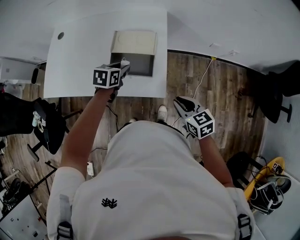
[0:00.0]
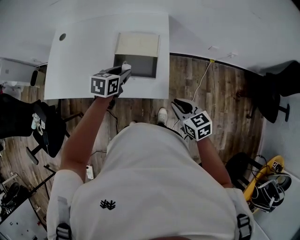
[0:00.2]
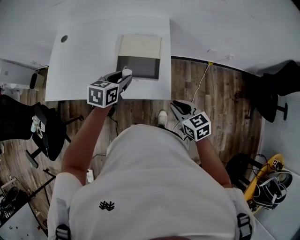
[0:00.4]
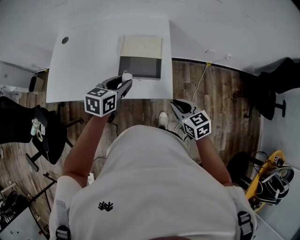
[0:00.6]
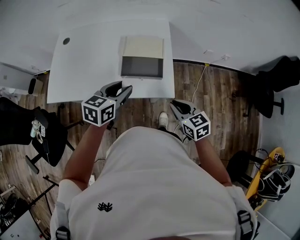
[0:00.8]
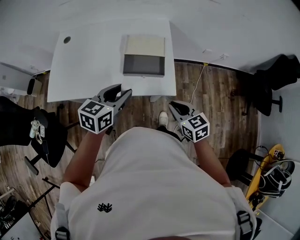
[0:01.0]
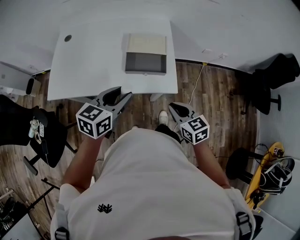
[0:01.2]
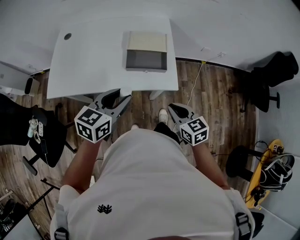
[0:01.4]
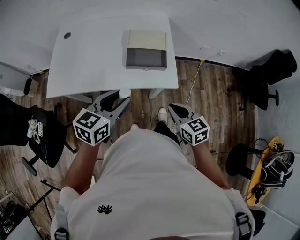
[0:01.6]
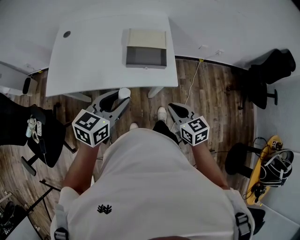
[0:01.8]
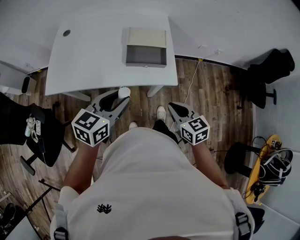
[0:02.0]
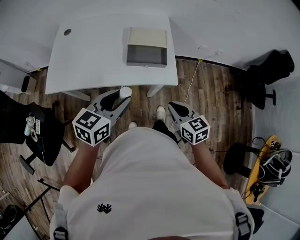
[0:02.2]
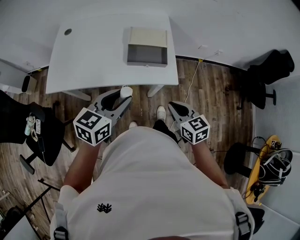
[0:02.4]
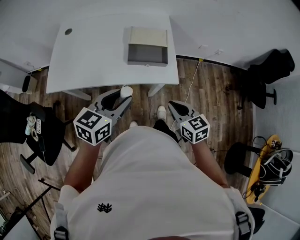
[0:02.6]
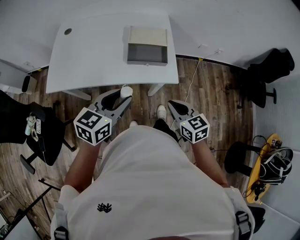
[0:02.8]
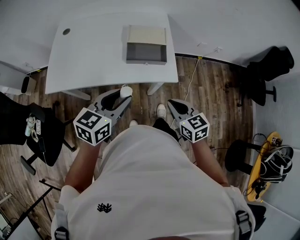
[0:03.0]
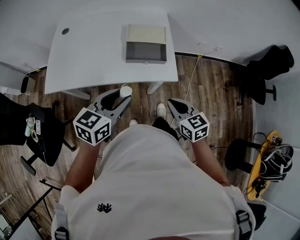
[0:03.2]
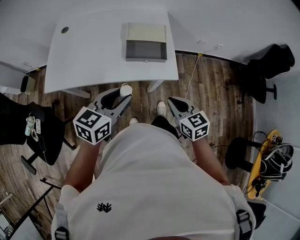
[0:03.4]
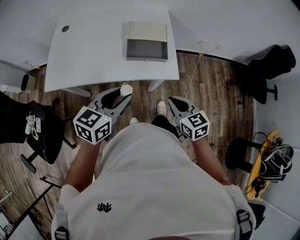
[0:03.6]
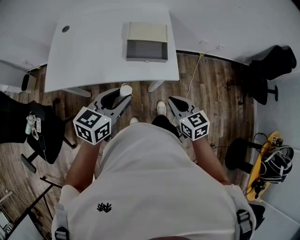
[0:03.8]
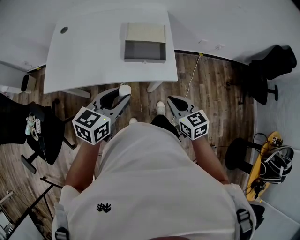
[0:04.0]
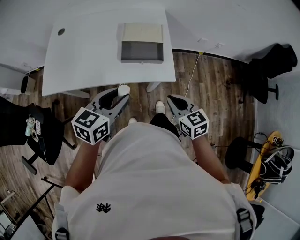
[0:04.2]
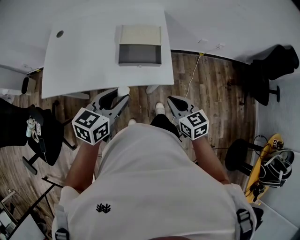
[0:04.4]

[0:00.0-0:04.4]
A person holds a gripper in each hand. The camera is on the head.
0:00.0 to 0:01.4: The right gripper moves to the left and backward, approximately 15 cm; the left gripper moves backward and upward, about 25 cm, and rotates some 30 degrees.
0:01.4 to 0:03.0: The grippers move only a little.
0:03.0 to 0:04.4: The left gripper changes place by approximately 5 cm; the right gripper shifts by approximately 5 cm.

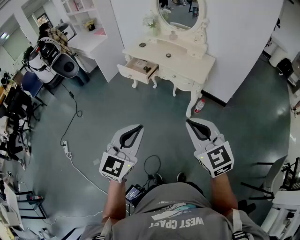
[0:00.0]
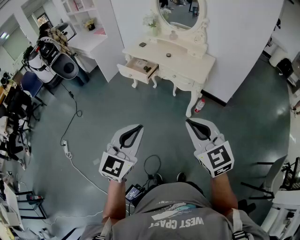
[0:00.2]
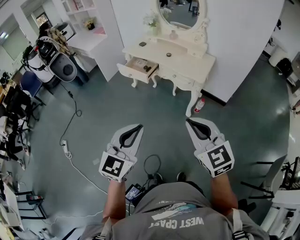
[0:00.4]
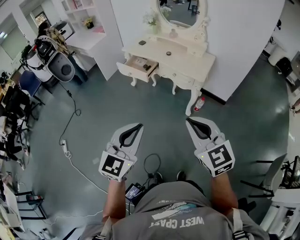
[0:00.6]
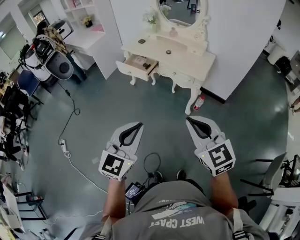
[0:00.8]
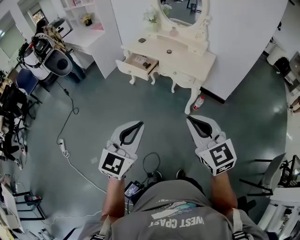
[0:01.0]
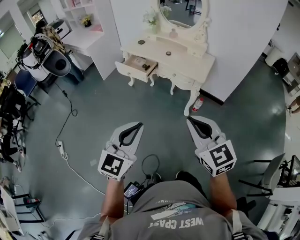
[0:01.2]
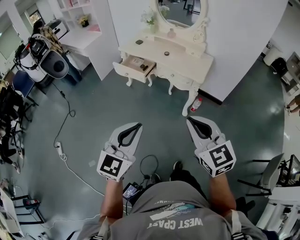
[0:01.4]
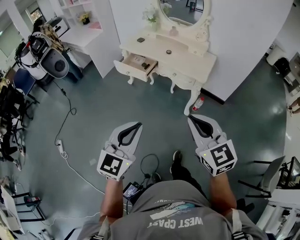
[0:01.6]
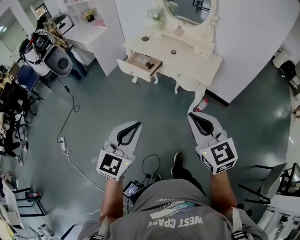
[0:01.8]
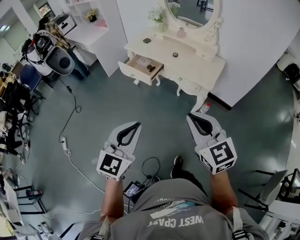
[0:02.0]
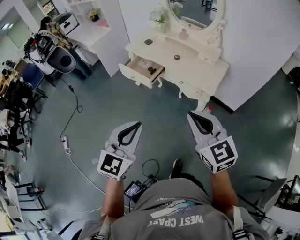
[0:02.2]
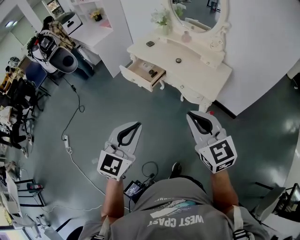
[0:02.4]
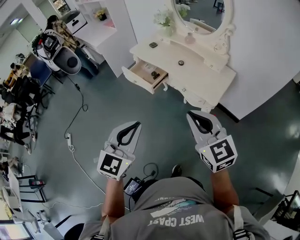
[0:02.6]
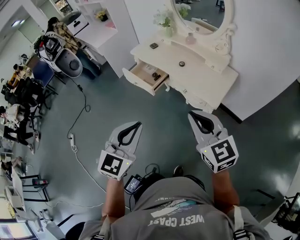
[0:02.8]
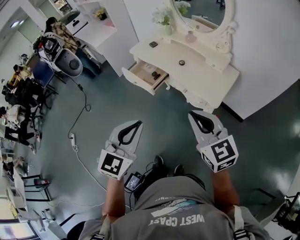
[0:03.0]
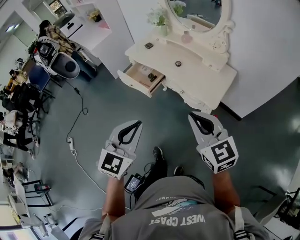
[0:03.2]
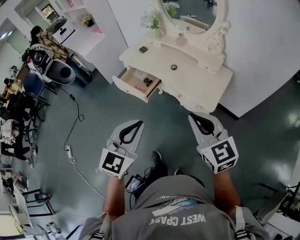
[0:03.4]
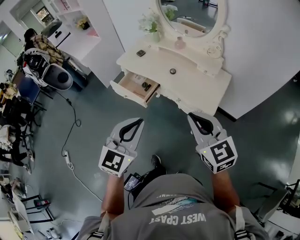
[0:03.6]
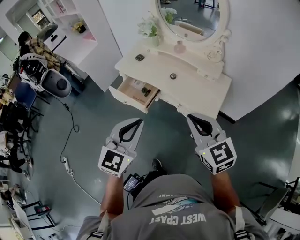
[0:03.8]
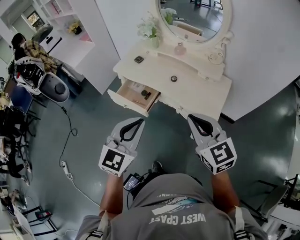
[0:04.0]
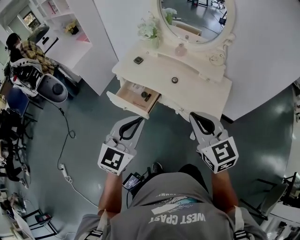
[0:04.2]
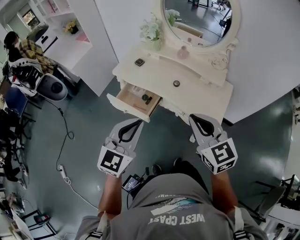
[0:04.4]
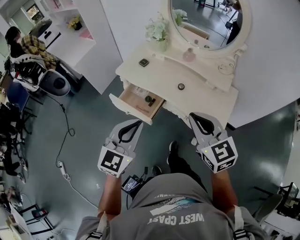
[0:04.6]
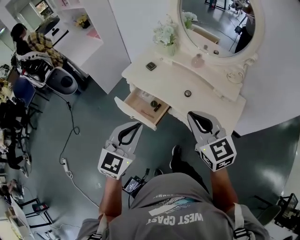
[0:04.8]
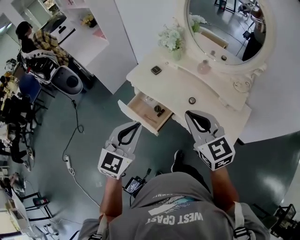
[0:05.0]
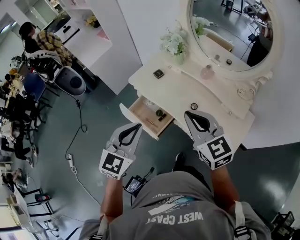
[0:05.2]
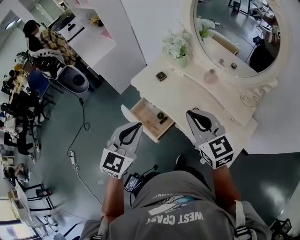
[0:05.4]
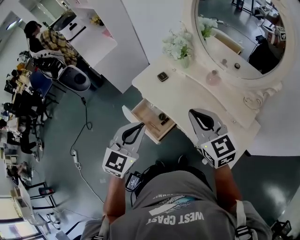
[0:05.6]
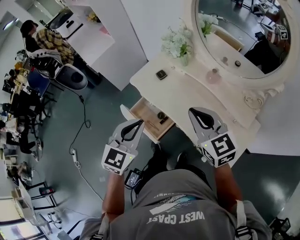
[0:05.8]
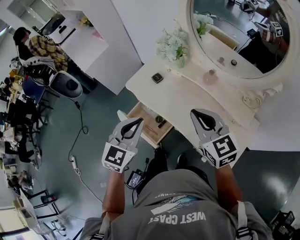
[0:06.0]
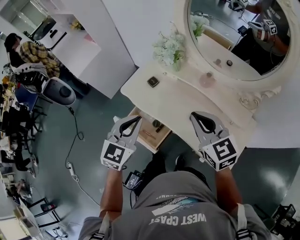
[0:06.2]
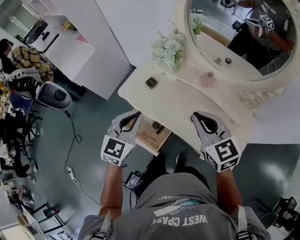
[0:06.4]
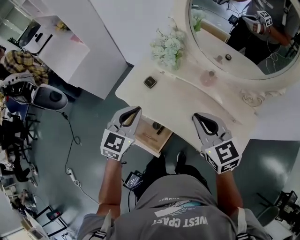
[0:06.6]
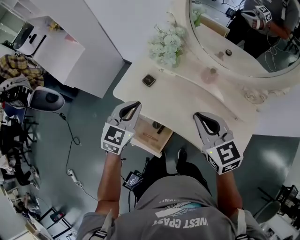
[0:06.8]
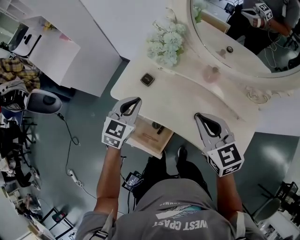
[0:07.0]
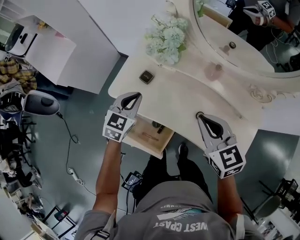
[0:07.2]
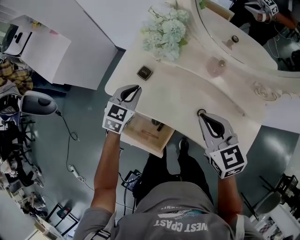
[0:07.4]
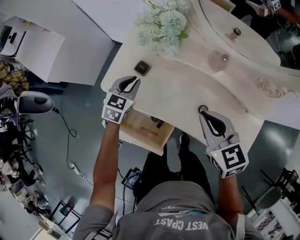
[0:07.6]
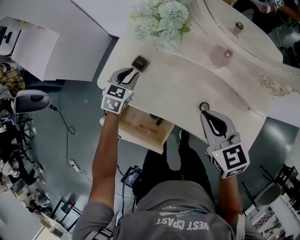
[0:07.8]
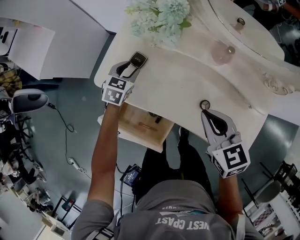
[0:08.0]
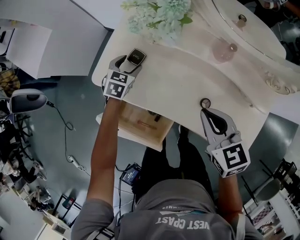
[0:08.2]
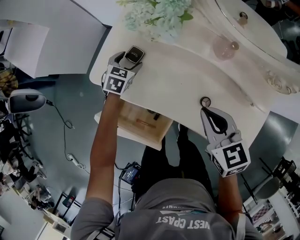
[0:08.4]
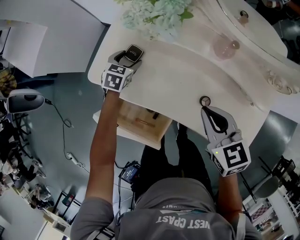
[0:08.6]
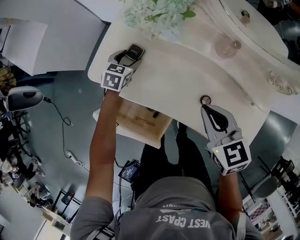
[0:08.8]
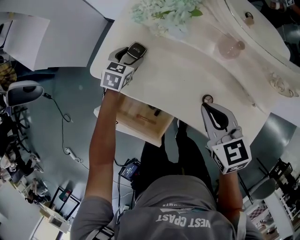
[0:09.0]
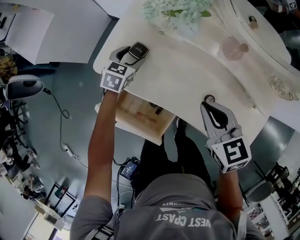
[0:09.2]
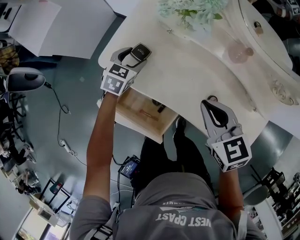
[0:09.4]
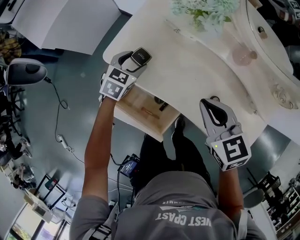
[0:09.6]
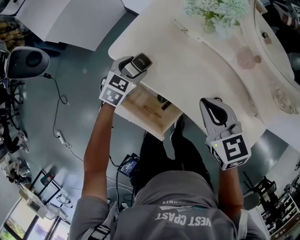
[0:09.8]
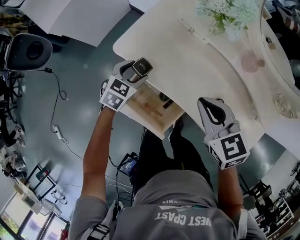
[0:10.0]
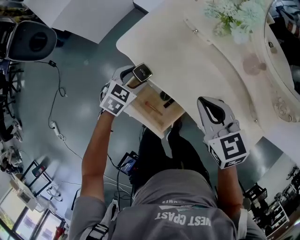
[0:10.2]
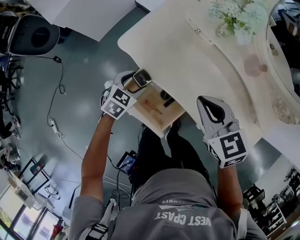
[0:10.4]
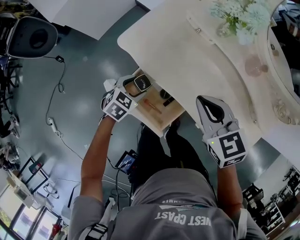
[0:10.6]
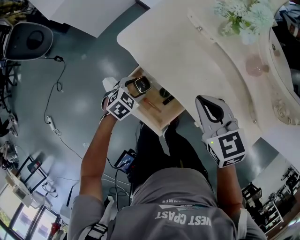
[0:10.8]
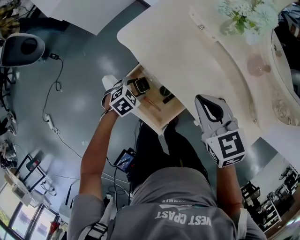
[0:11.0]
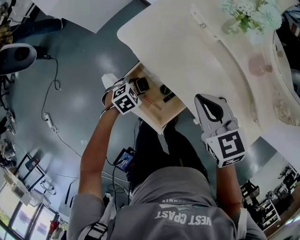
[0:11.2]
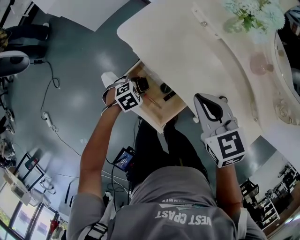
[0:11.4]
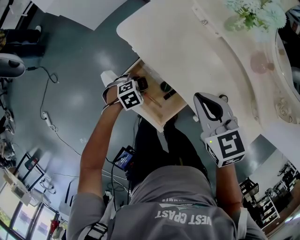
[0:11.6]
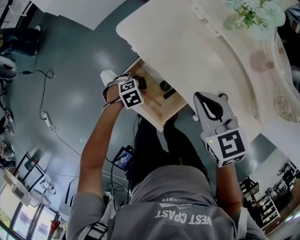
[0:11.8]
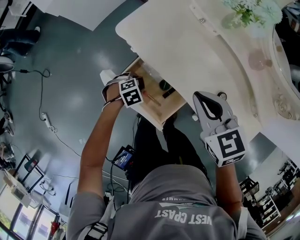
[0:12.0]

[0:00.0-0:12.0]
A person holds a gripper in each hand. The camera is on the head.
0:00.0 to 0:01.6: The grippers both shift forward by some 10 cm.
0:01.6 to 0:03.0: Both grippers move forward and to the right, about 30 cm.
0:03.0 to 0:04.4: The two grippers go approximately 25 cm forward and to the left.
0:04.4 to 0:06.0: Both grippers travel together forward, about 30 cm.
0:06.0 to 0:07.6: The right gripper is displaced downward and forward by approximately 20 cm, and swivels roughly 20 degrees, while the left gripper travels forward and downward by roughly 40 cm, and swivels roughly 20 degrees.
0:07.6 to 0:09.0: The right gripper heads downward, covering some 5 cm. The left gripper moves downward and forward, about 10 cm, and opens up.
0:09.0 to 0:10.4: The left gripper shifts some 20 cm backward and to the left, while the right gripper moves to the left, approximately 10 cm.
0:10.4 to 0:12.0: The left gripper goes approximately 15 cm downward, and turns by roughly 40 degrees.

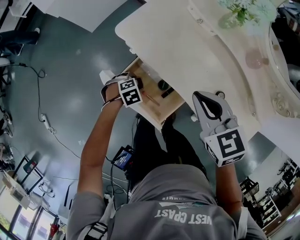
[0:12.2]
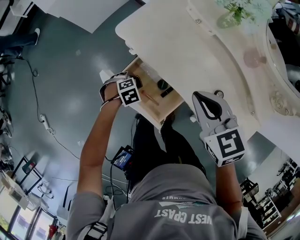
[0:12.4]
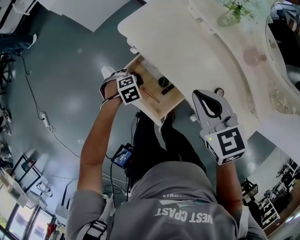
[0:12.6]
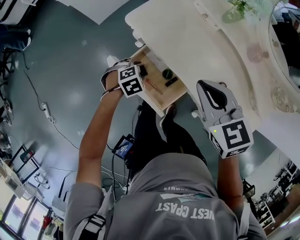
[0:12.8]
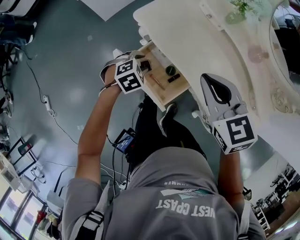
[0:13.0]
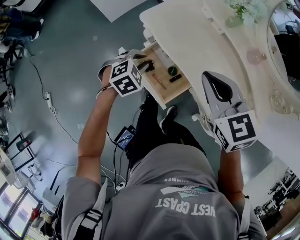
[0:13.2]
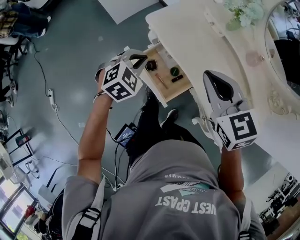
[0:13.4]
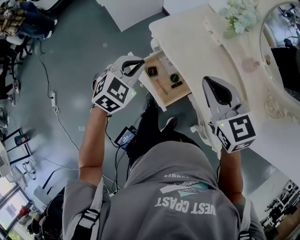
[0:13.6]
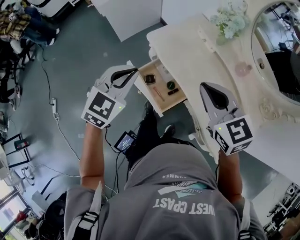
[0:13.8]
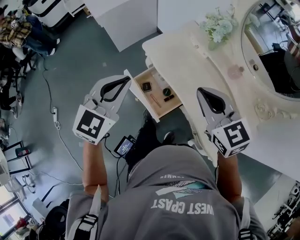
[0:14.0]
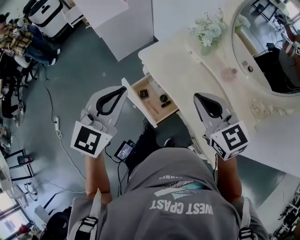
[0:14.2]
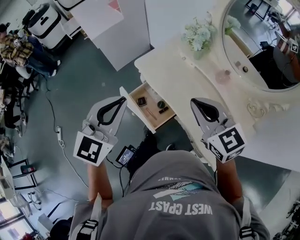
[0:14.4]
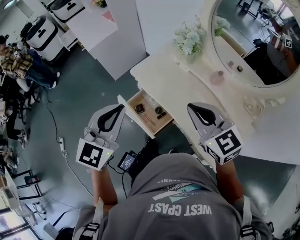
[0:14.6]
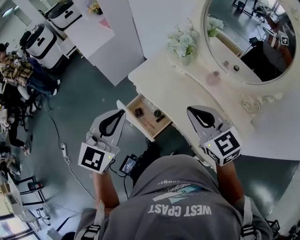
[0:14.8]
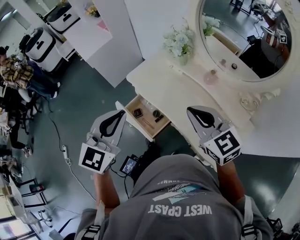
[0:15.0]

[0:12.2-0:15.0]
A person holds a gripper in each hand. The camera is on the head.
0:12.2 to 0:13.6: The left gripper goes approximately 35 cm upward, tips its fingers upward by about 40 degrees, and closes; the right gripper goes some 15 cm upward.
0:13.6 to 0:15.0: The left gripper heads upward, backward and to the right, covering roughly 25 cm, and swivels about 30 degrees. The right gripper is displaced to the right, backward and upward by about 20 cm.

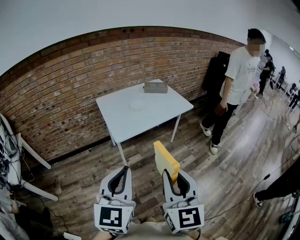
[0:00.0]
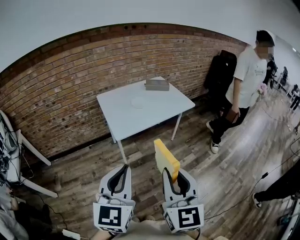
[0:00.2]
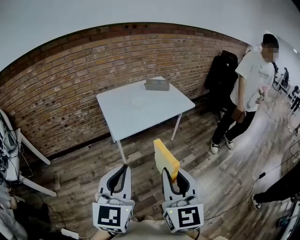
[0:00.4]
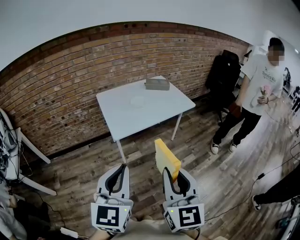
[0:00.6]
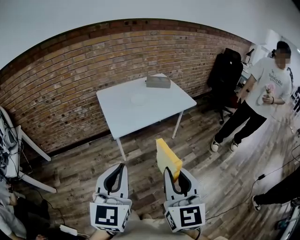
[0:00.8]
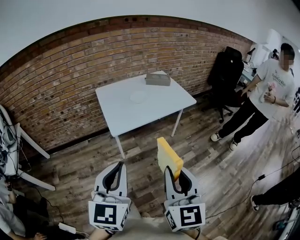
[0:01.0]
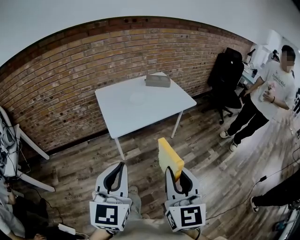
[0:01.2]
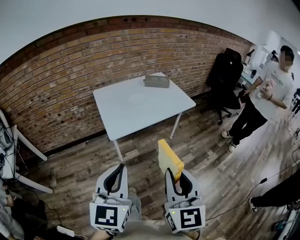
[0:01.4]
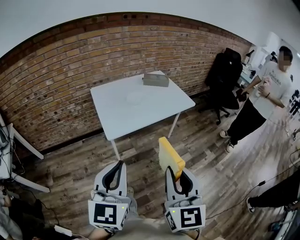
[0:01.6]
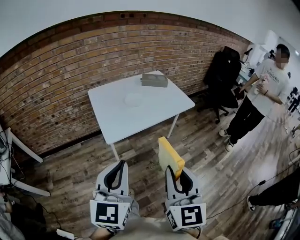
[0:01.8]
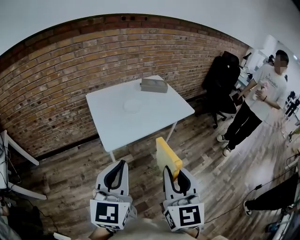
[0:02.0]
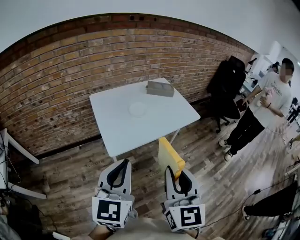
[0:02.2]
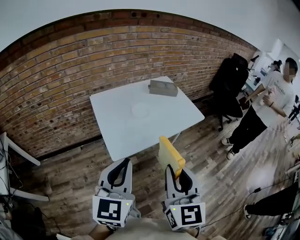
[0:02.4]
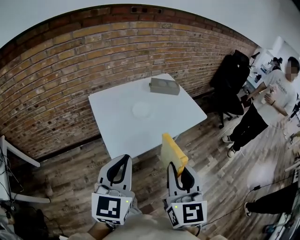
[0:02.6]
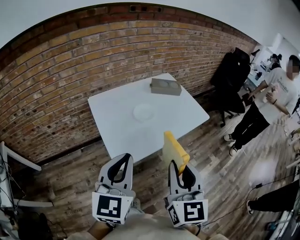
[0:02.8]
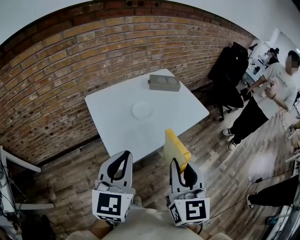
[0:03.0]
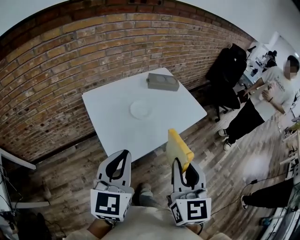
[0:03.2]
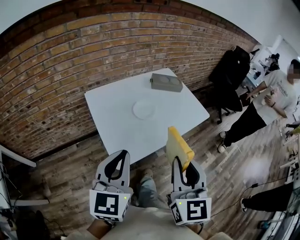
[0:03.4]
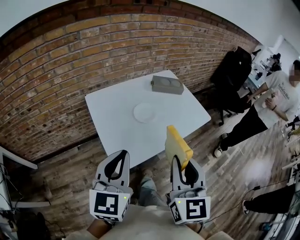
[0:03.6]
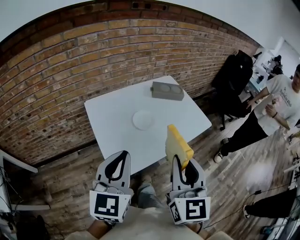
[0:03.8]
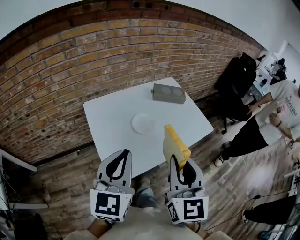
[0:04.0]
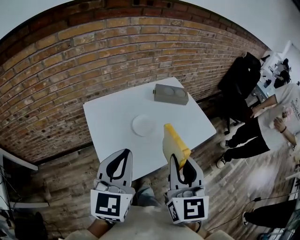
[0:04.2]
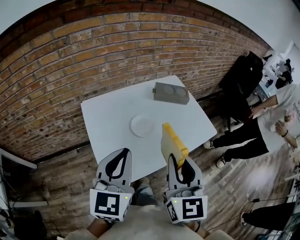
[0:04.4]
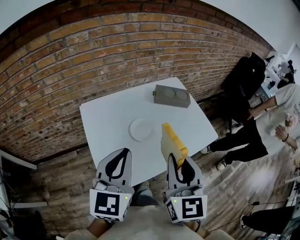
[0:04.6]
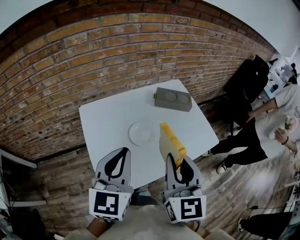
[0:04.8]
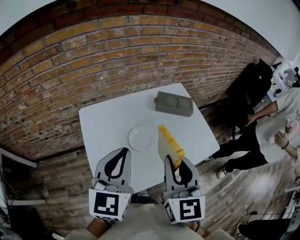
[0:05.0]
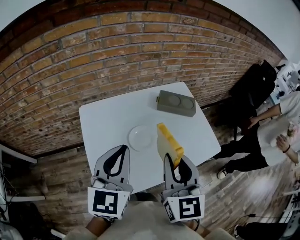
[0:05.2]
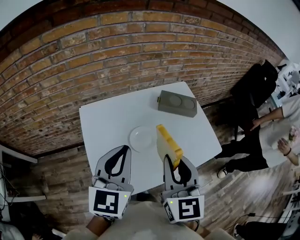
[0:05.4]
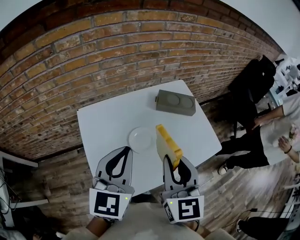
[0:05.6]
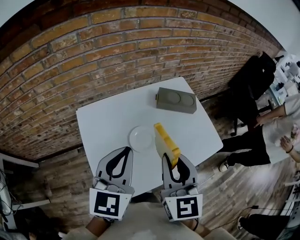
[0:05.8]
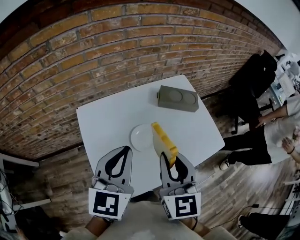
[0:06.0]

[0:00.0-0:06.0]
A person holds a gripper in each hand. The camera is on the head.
0:00.0 to 0:01.6: Both grippers travel together forward, roughly 10 cm.
0:01.6 to 0:03.0: The left gripper moves forward, about 25 cm; the right gripper travels forward and to the left by roughly 25 cm.
0:03.0 to 0:04.4: Both grippers move forward, approximately 15 cm.
0:04.4 to 0:06.0: Both grippers move forward, about 15 cm.
